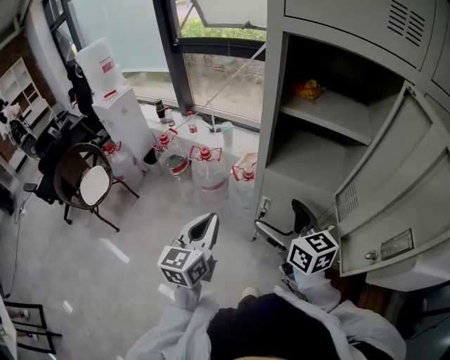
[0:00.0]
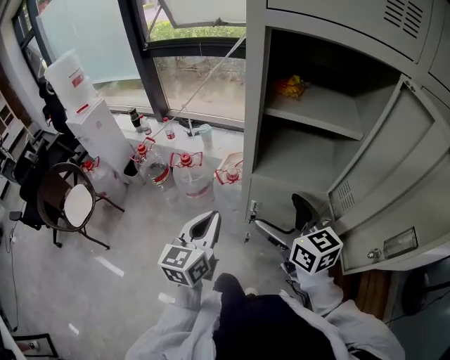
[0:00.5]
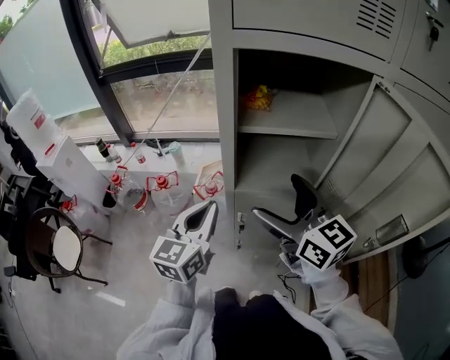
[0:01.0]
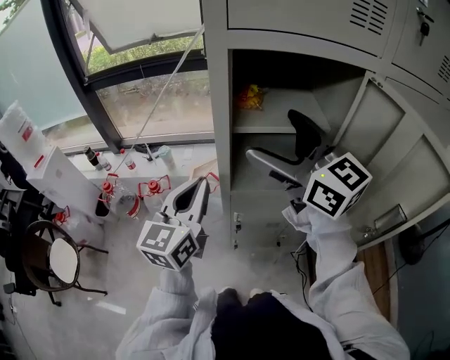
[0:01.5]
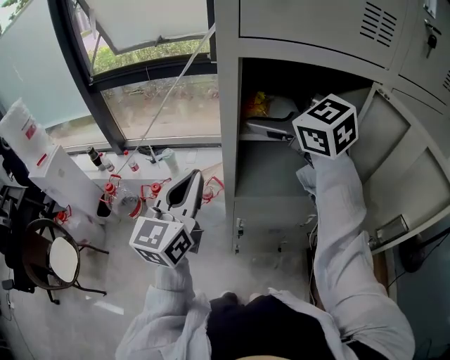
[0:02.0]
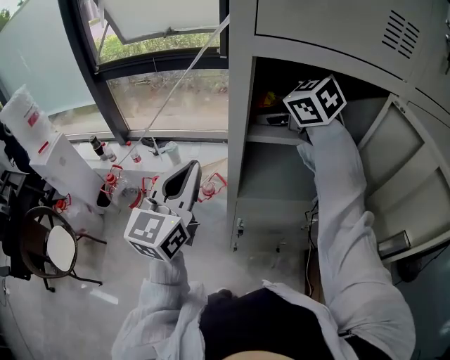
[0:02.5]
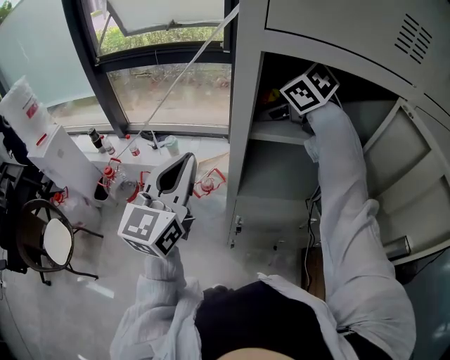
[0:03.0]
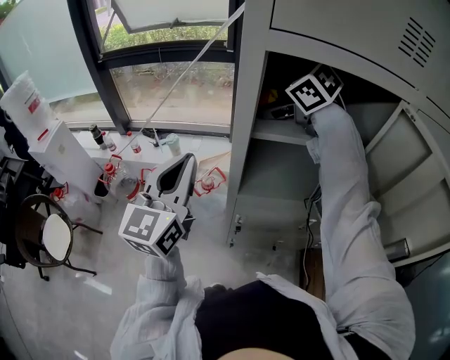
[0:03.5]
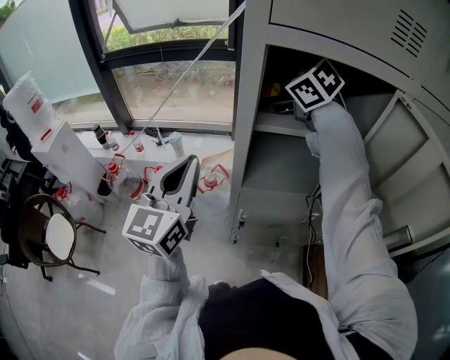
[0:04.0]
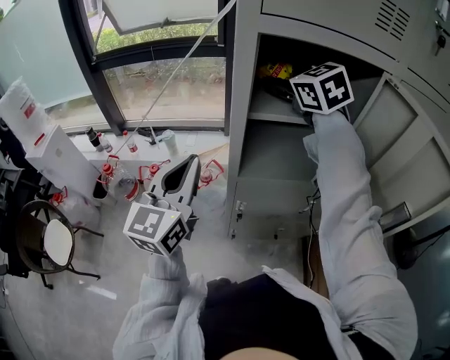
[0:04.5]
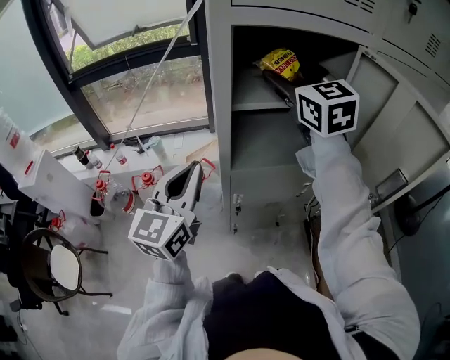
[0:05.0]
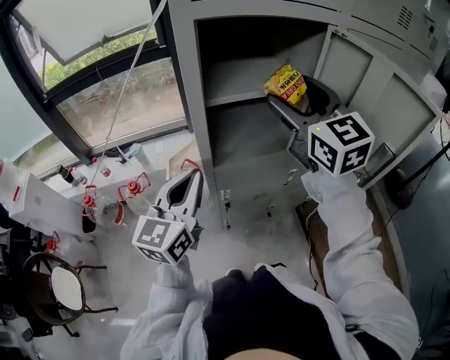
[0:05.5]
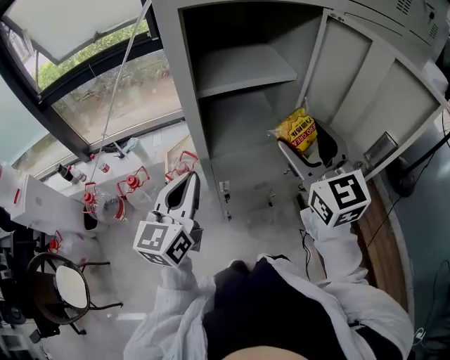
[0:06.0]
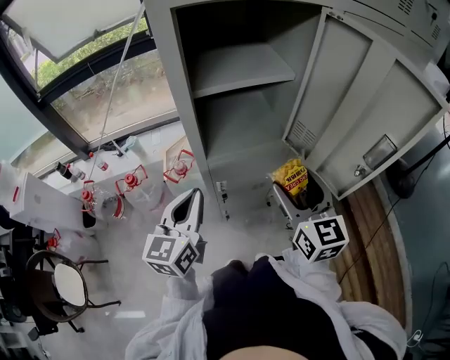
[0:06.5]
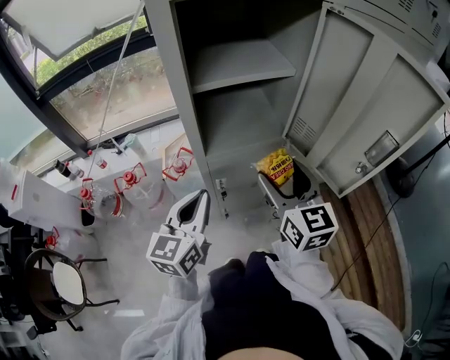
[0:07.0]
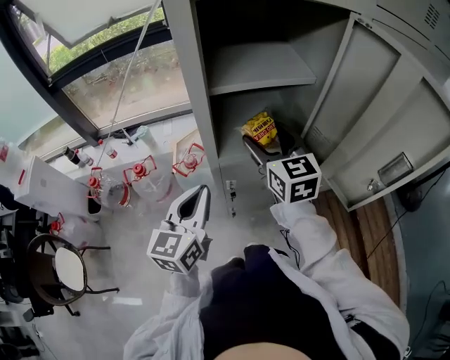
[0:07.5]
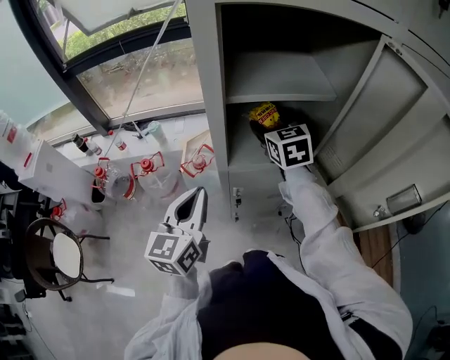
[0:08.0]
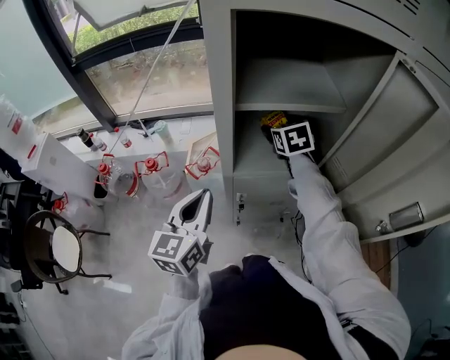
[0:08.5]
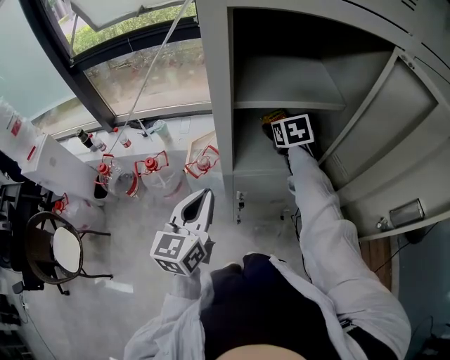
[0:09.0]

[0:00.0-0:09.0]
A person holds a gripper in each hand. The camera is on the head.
0:00.0 to 0:02.0: The right gripper moves upward and forward, about 35 cm, and swivels some 40 degrees, while the left gripper travels forward and upward by approximately 25 cm, and turns by some 30 degrees.
0:02.0 to 0:04.5: The right gripper travels forward by roughly 5 cm, and closes.
0:04.5 to 0:07.0: The right gripper moves backward, downward and to the right, roughly 35 cm, and swivels roughly 40 degrees, while the left gripper goes about 15 cm downward and to the right, and rotates roughly 20 degrees.
0:07.0 to 0:09.0: The right gripper travels forward by roughly 30 cm, and tilts its fingers some 30 degrees downward. Meanwhile the left gripper ends up approximately 5 cm from where it was.

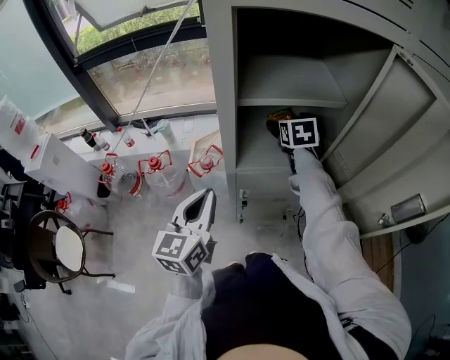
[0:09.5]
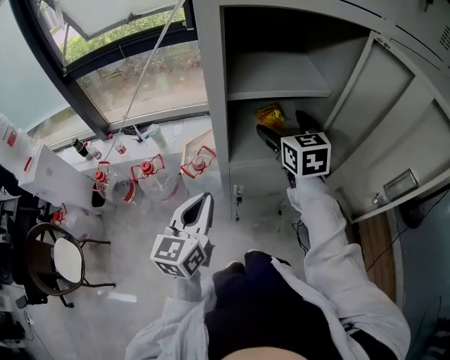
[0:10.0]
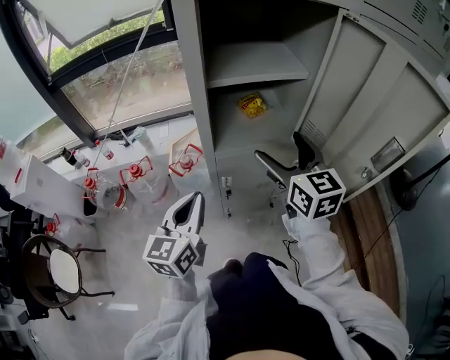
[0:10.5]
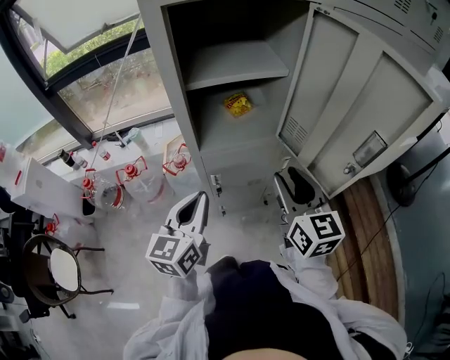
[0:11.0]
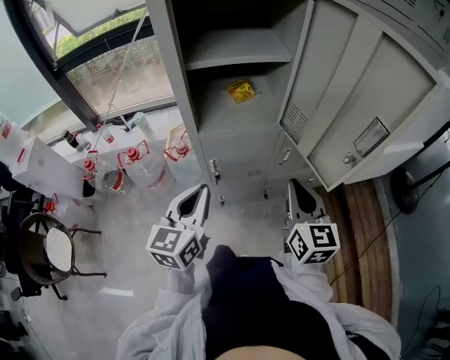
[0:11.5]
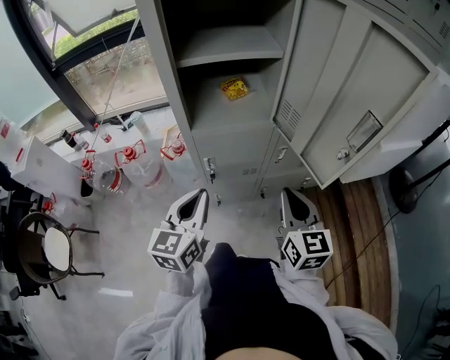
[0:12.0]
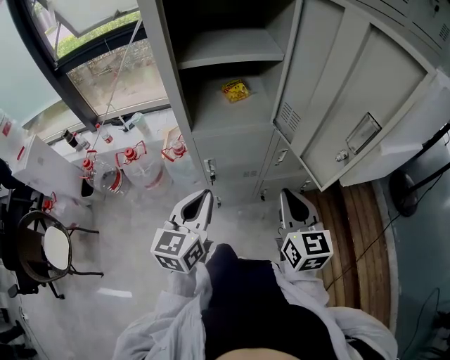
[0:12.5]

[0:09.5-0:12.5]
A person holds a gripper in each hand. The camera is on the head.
0:09.5 to 0:11.0: The left gripper heads to the right and backward, covering approximately 10 cm; the right gripper travels backward by some 30 cm, changes its angle by about 30 degrees, and closes.
0:11.0 to 0:12.5: The right gripper heads downward and backward, covering some 10 cm, while the left gripper shifts by about 5 cm.

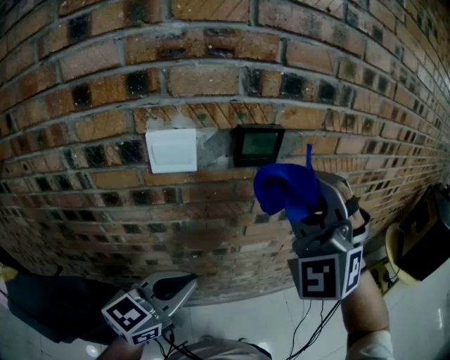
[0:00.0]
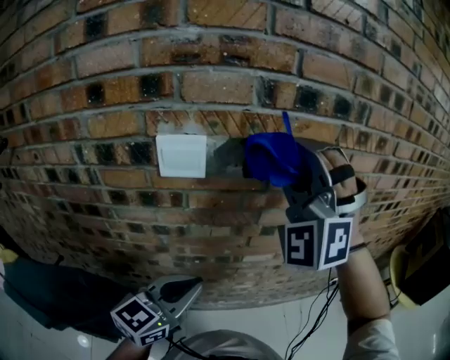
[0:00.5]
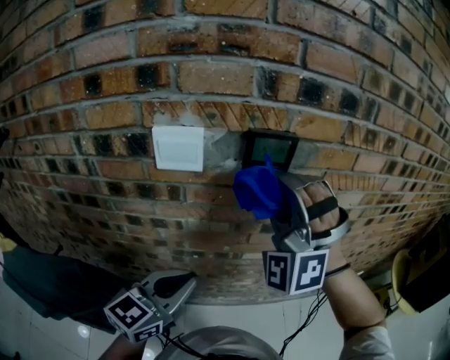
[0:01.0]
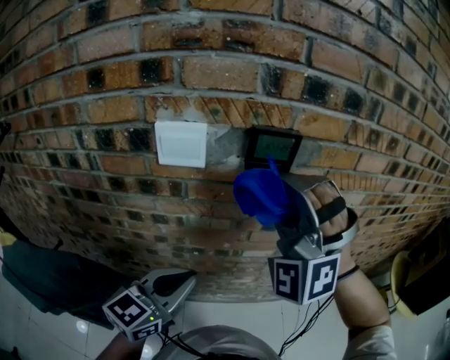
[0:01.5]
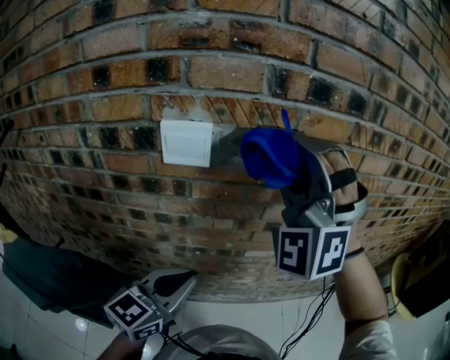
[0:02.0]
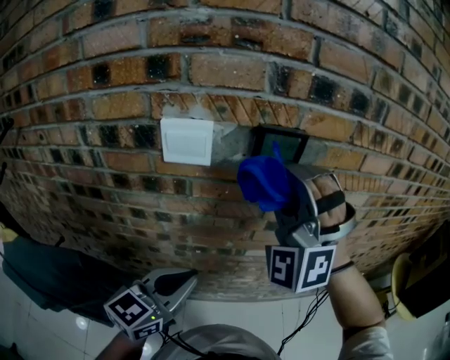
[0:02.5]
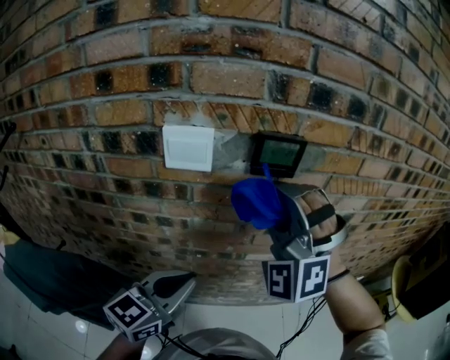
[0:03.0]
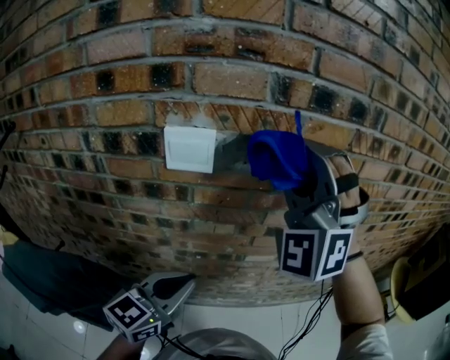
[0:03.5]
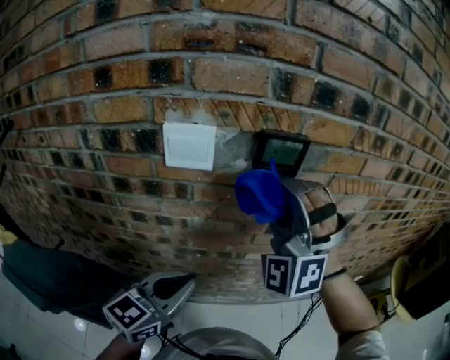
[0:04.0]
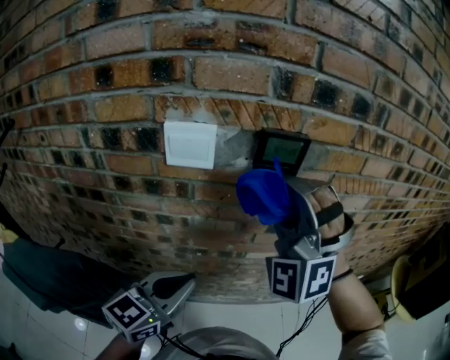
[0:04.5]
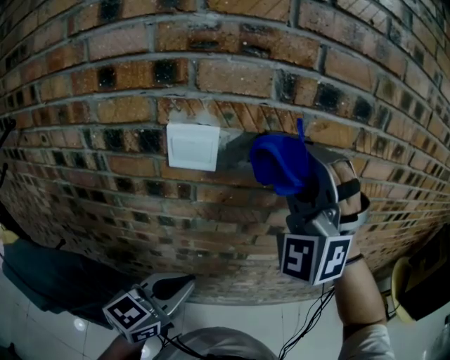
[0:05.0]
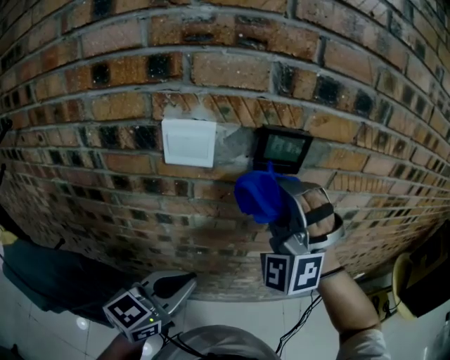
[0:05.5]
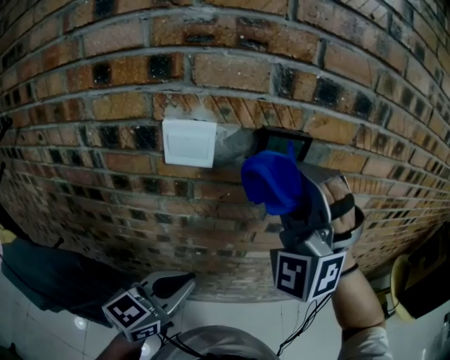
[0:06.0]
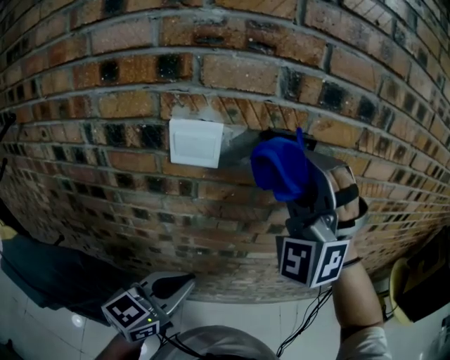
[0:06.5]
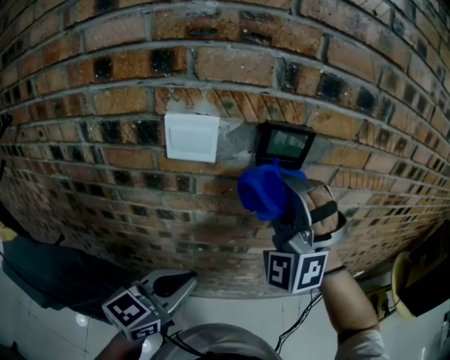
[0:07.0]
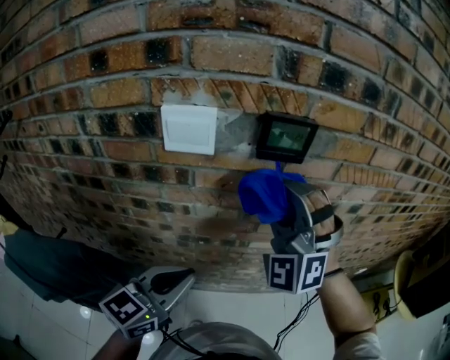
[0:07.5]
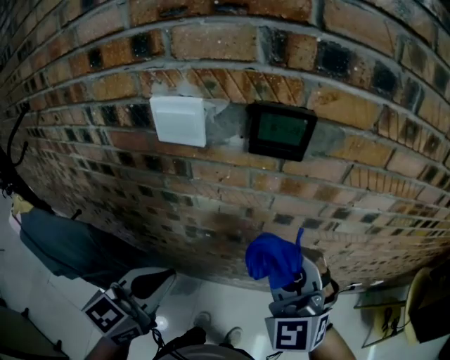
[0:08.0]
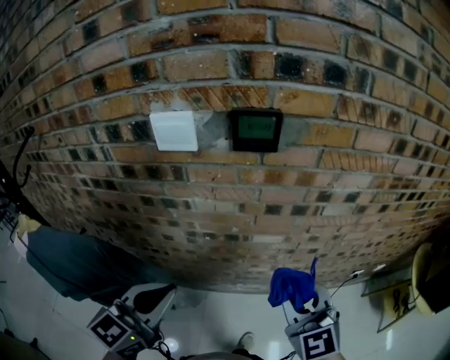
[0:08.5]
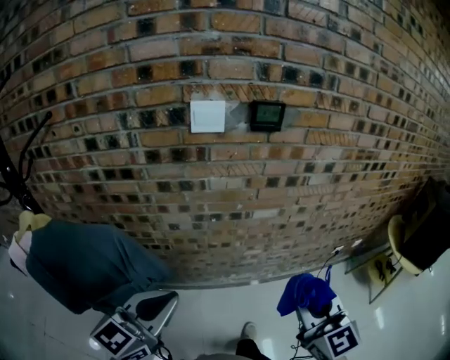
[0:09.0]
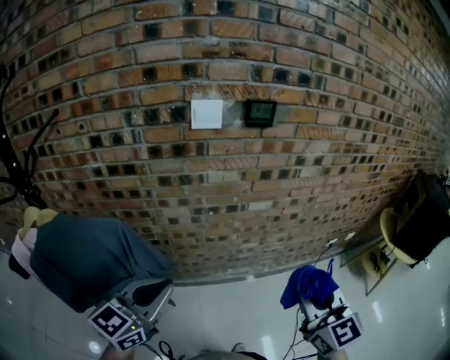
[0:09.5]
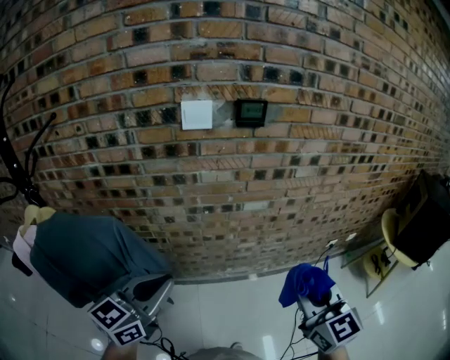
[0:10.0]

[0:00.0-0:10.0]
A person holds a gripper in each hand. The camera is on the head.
0:08.0 to 0:10.0: The left gripper shifts by some 20 cm.

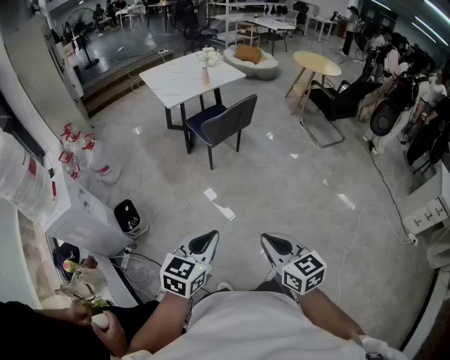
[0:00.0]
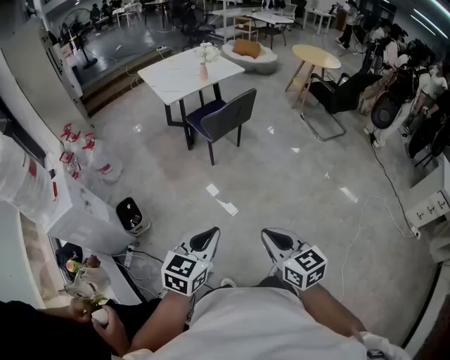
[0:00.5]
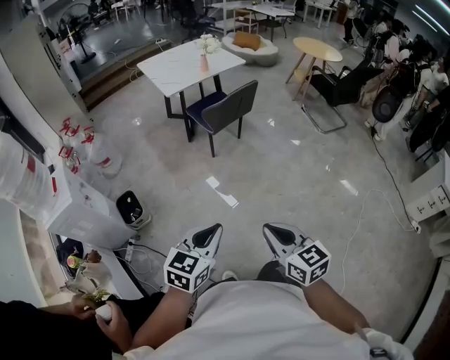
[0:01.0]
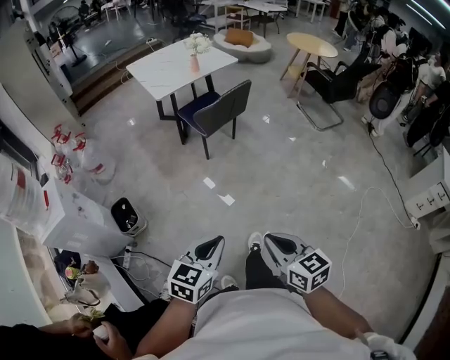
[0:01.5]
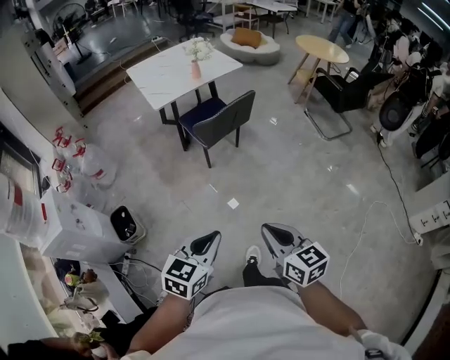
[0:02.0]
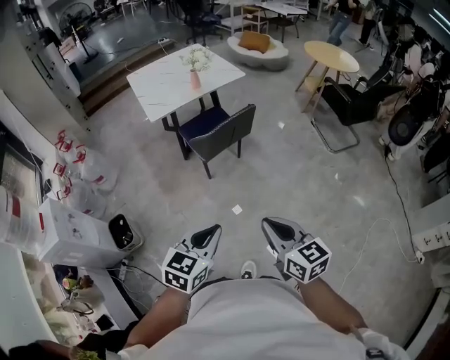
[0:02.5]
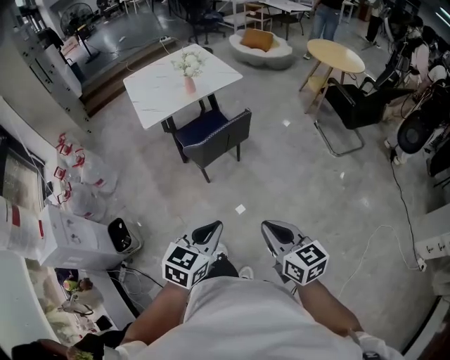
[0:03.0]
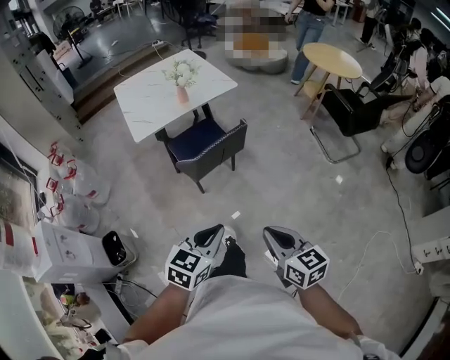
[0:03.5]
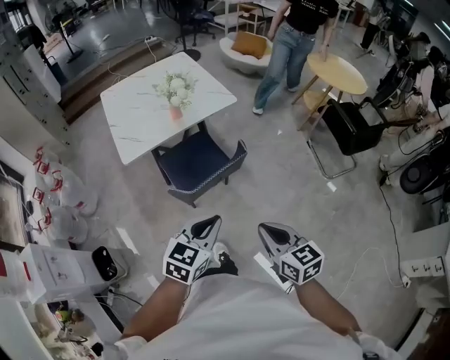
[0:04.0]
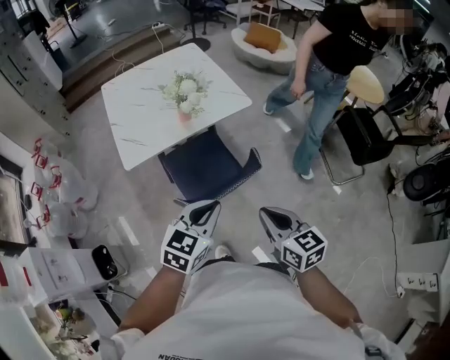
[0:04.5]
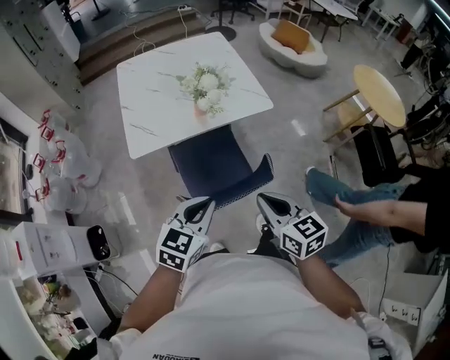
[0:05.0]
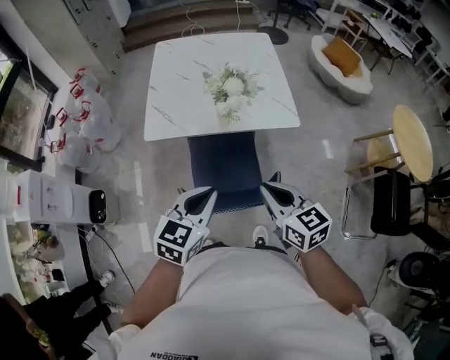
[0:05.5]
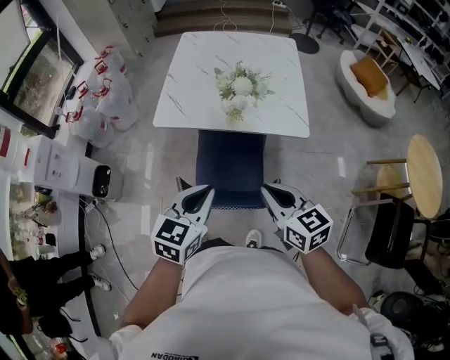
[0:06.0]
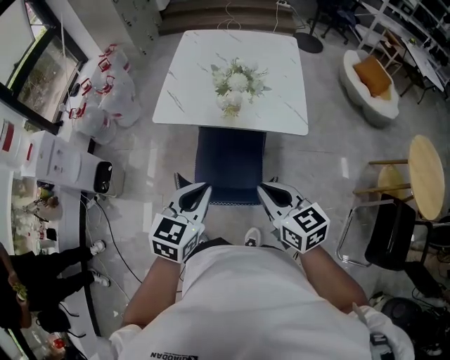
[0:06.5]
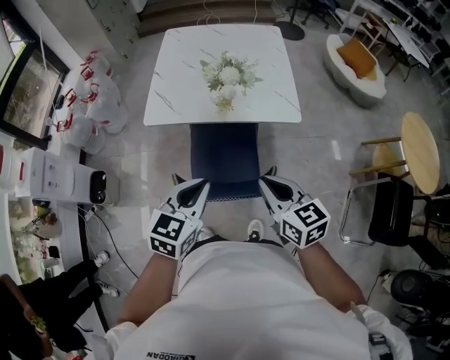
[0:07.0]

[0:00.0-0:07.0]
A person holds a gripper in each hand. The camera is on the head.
0:00.0 to 0:02.0: Both grippers move forward, roughly 15 cm.
0:02.0 to 0:03.5: The two grippers go about 30 cm forward and to the right.
0:03.5 to 0:05.0: The grippers both shift forward by approximately 40 cm.
0:05.0 to 0:07.0: The left gripper moves roughly 10 cm, and swivels about 20 degrees, while the right gripper ends up approximately 10 cm from where it was, and rotates approximately 20 degrees.
